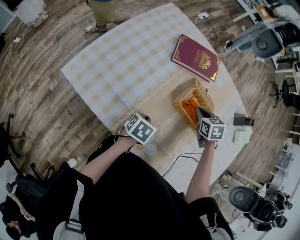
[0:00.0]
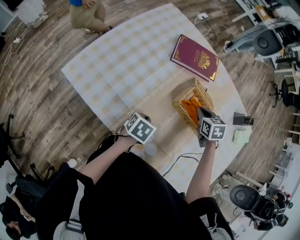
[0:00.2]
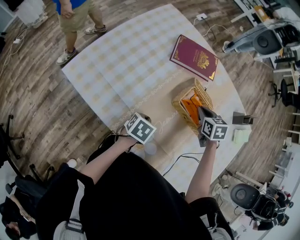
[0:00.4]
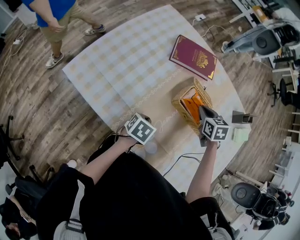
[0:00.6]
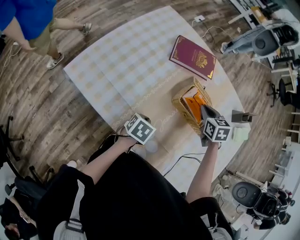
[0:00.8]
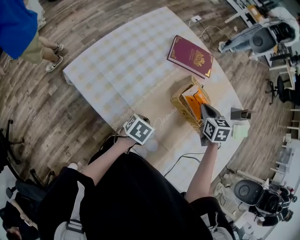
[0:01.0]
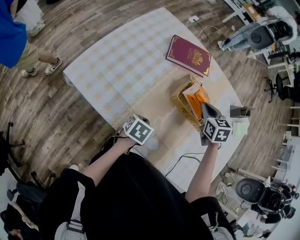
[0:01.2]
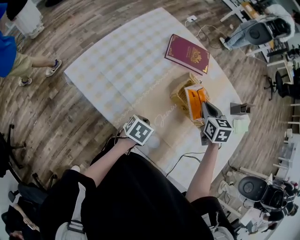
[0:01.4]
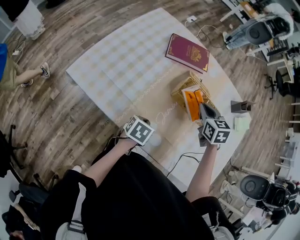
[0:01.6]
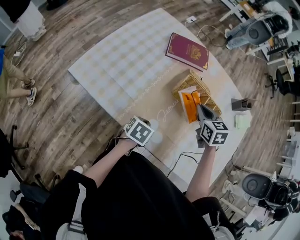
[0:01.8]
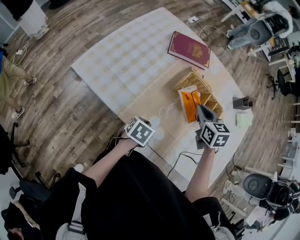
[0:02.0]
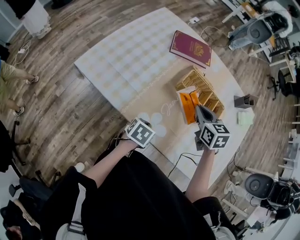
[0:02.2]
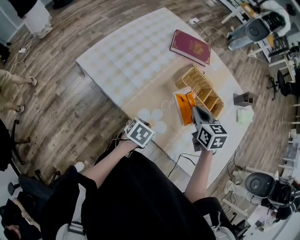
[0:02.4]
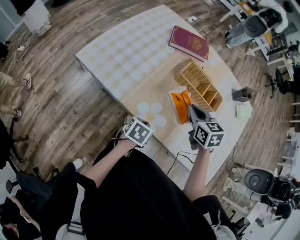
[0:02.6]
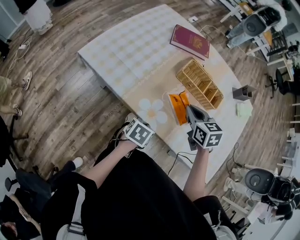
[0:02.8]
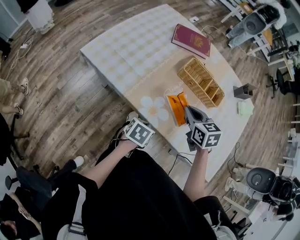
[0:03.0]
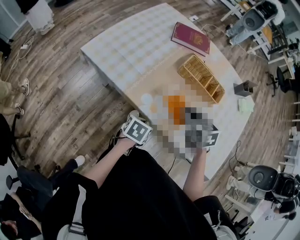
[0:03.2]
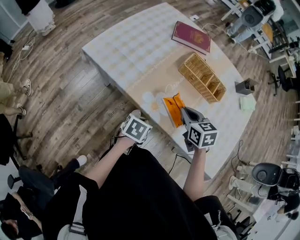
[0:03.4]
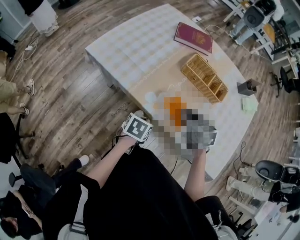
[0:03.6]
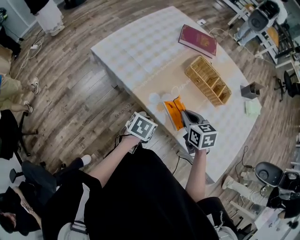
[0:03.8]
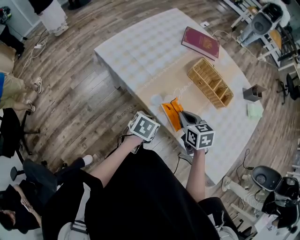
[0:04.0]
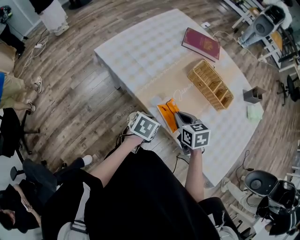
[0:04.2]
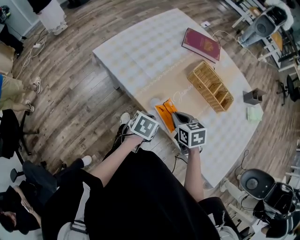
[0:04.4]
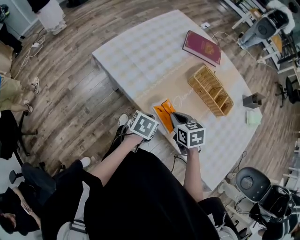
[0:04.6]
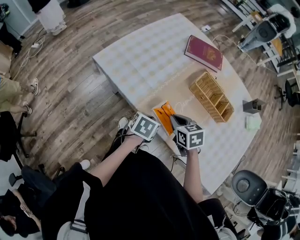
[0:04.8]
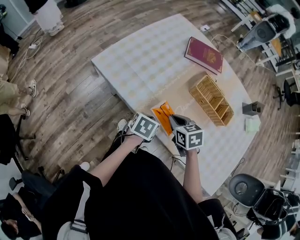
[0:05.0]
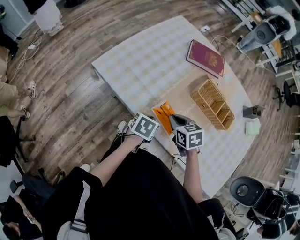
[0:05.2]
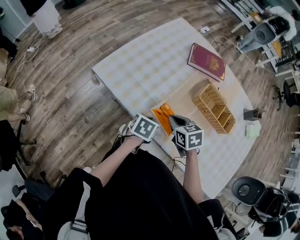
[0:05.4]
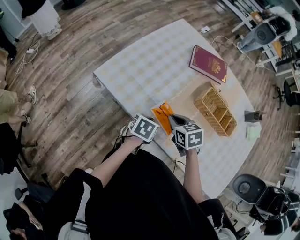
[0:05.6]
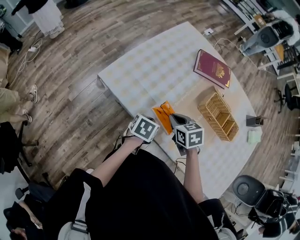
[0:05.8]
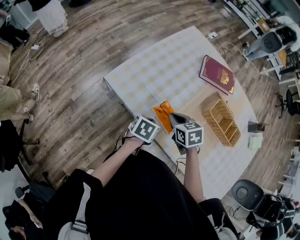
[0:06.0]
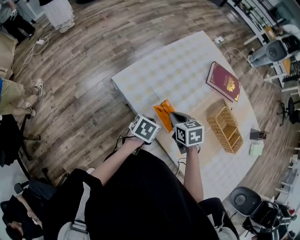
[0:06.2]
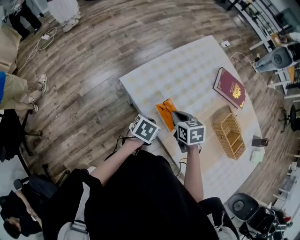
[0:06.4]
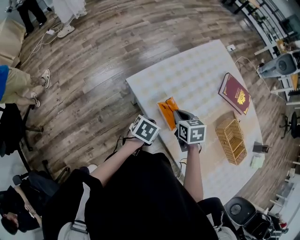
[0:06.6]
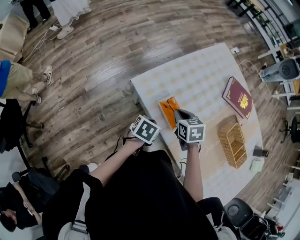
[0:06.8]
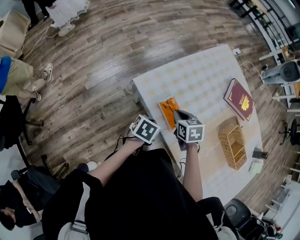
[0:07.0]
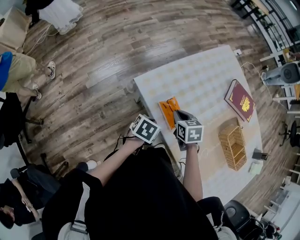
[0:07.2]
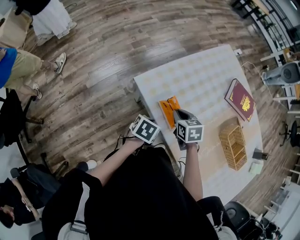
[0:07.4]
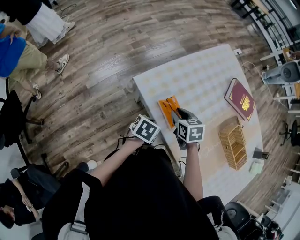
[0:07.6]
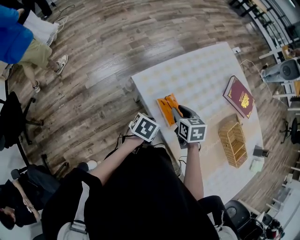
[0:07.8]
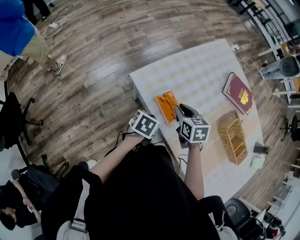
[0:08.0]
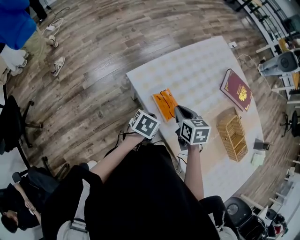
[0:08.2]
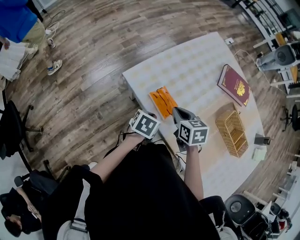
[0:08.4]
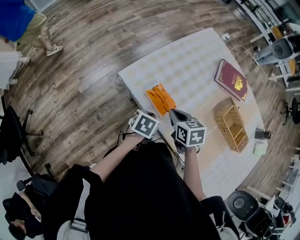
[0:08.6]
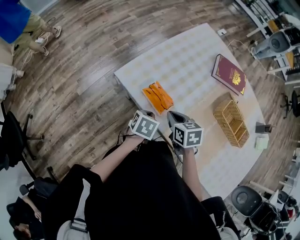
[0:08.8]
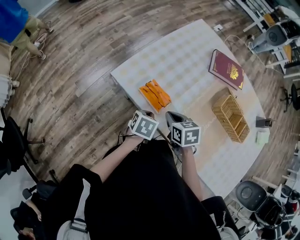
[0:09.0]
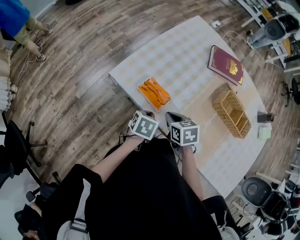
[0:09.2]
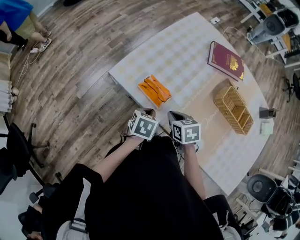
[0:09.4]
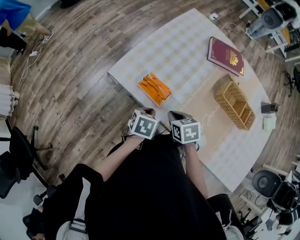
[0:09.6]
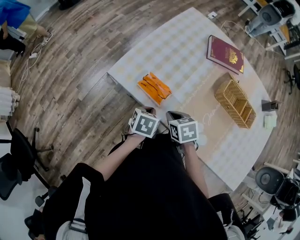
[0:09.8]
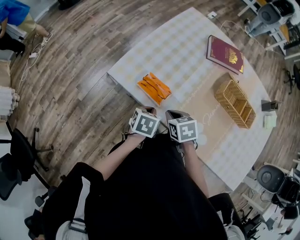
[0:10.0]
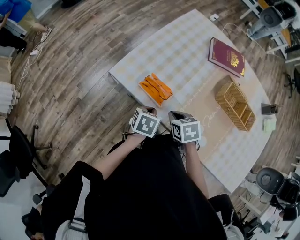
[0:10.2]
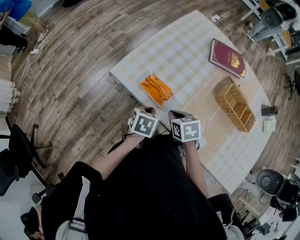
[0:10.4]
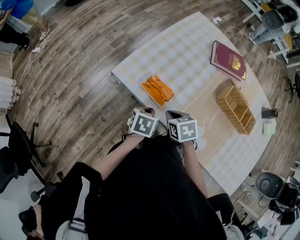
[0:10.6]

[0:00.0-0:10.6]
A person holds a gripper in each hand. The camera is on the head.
0:00.0 to 0:01.6: The right gripper heads upward and backward, covering roughly 10 cm; the left gripper travels backward by approximately 5 cm.
0:01.6 to 0:03.0: The two grippers go about 15 cm backward.
0:03.0 to 0:04.6: The right gripper goes roughly 10 cm to the left and downward. Meanwhile the left gripper travels forward by approximately 5 cm.
0:04.6 to 0:06.0: Both grippers move to the left and forward, roughly 20 cm.
0:06.0 to 0:07.6: The right gripper is displaced to the left and forward by some 15 cm, and opens its fingers; the left gripper heads to the left, covering approximately 15 cm.
0:07.6 to 0:09.0: The left gripper goes roughly 5 cm to the right; the right gripper shifts some 10 cm backward and to the right, and closes up.
0:09.0 to 0:10.6: The grippers stay close to where they were, moving slightly.

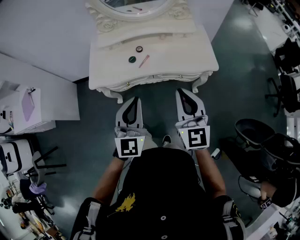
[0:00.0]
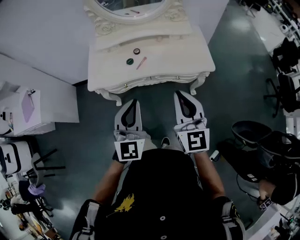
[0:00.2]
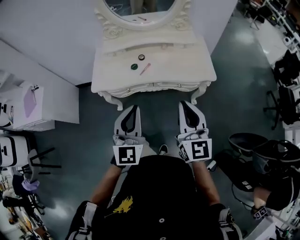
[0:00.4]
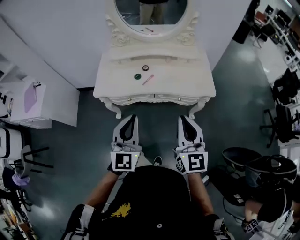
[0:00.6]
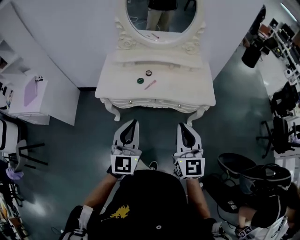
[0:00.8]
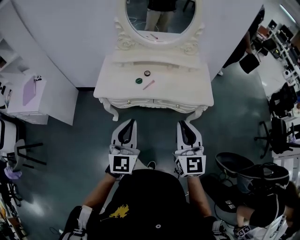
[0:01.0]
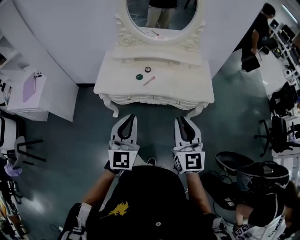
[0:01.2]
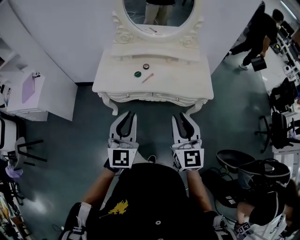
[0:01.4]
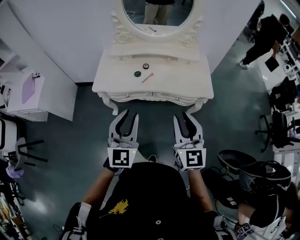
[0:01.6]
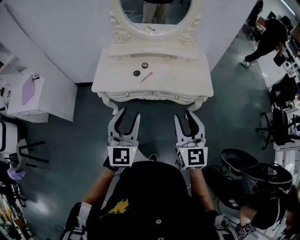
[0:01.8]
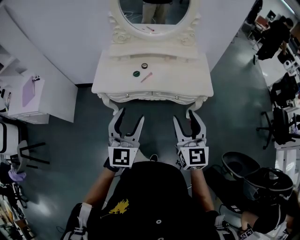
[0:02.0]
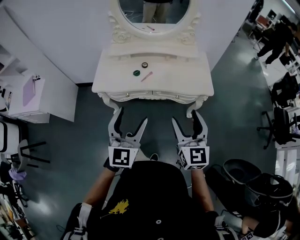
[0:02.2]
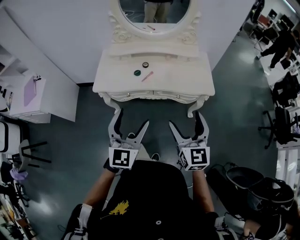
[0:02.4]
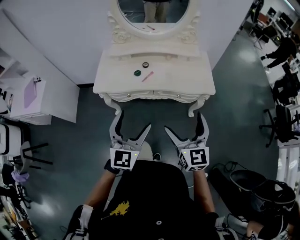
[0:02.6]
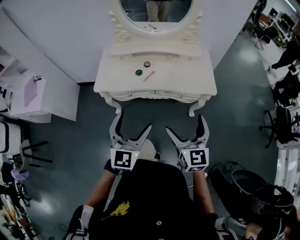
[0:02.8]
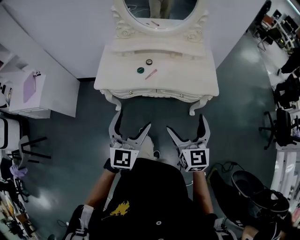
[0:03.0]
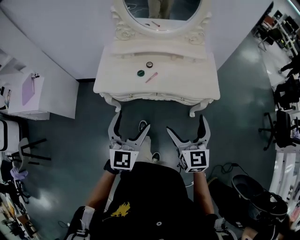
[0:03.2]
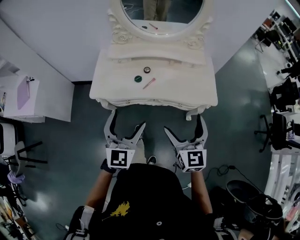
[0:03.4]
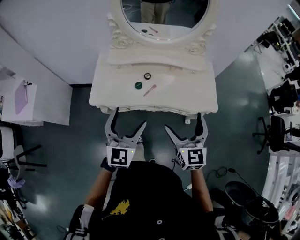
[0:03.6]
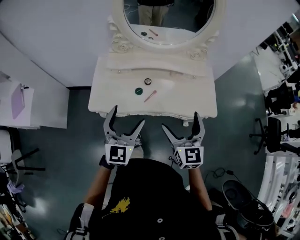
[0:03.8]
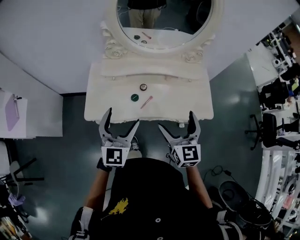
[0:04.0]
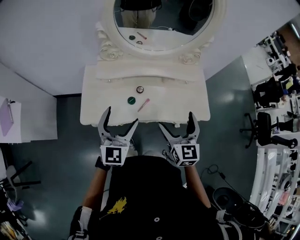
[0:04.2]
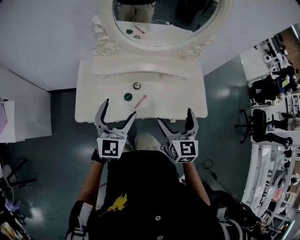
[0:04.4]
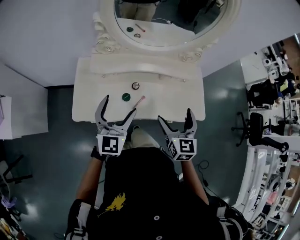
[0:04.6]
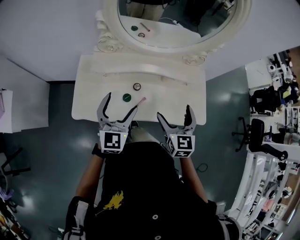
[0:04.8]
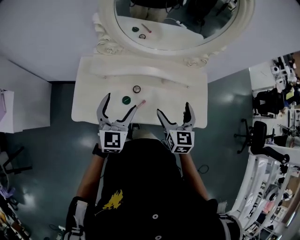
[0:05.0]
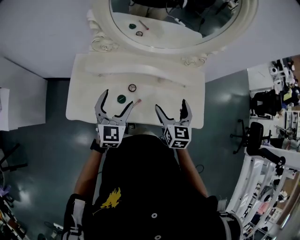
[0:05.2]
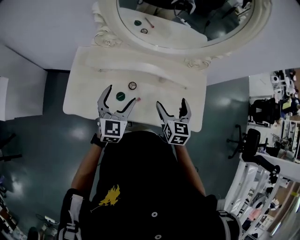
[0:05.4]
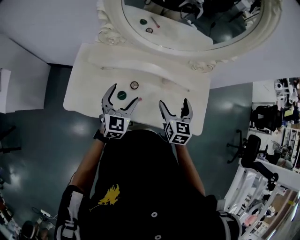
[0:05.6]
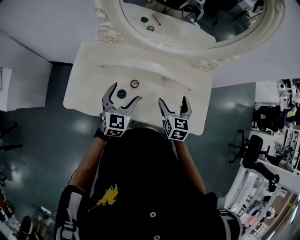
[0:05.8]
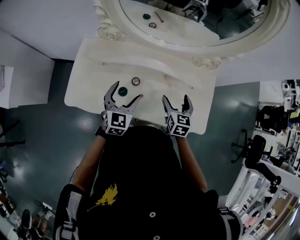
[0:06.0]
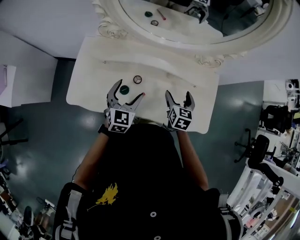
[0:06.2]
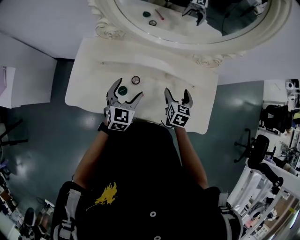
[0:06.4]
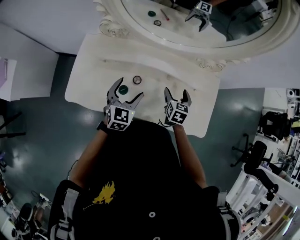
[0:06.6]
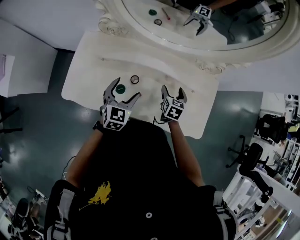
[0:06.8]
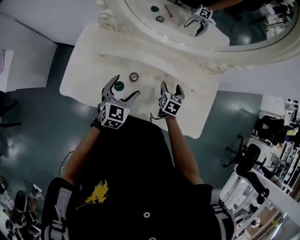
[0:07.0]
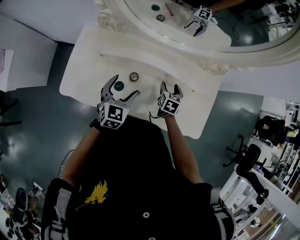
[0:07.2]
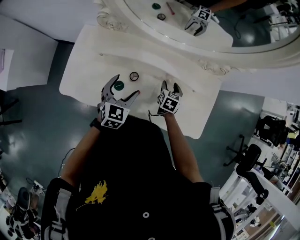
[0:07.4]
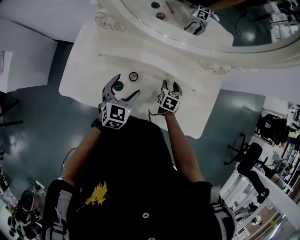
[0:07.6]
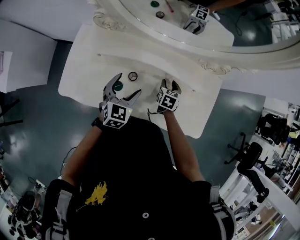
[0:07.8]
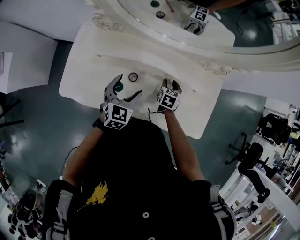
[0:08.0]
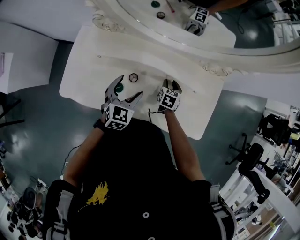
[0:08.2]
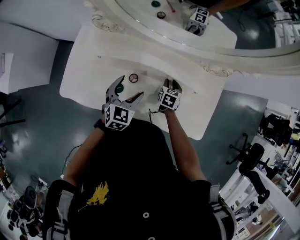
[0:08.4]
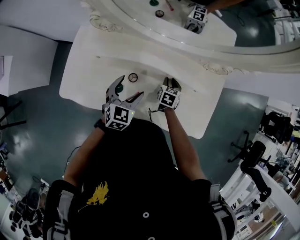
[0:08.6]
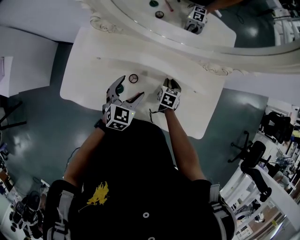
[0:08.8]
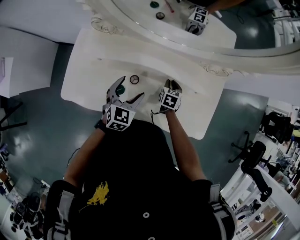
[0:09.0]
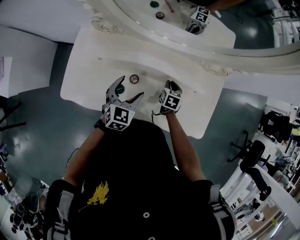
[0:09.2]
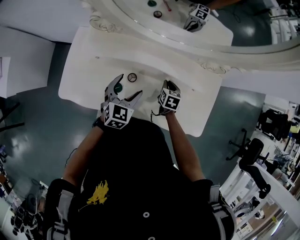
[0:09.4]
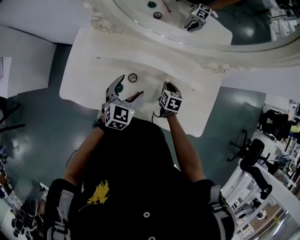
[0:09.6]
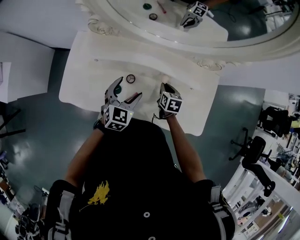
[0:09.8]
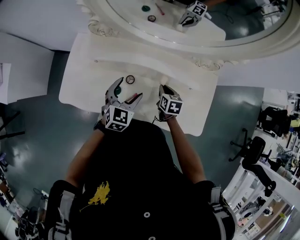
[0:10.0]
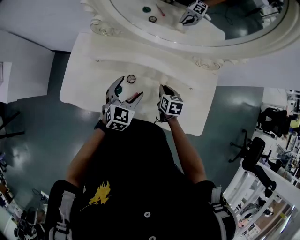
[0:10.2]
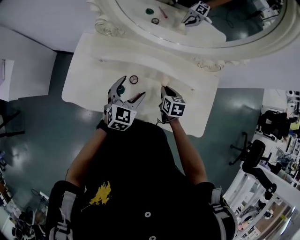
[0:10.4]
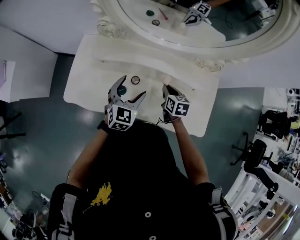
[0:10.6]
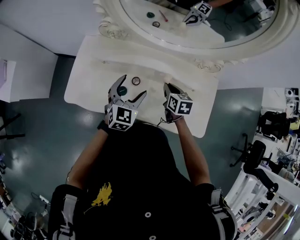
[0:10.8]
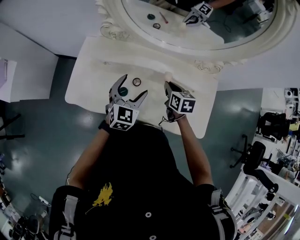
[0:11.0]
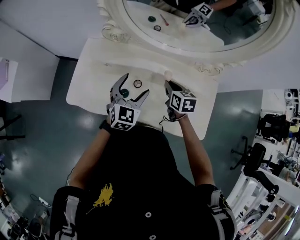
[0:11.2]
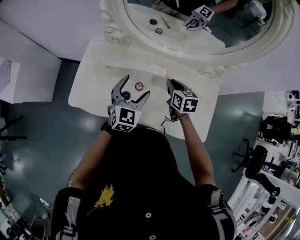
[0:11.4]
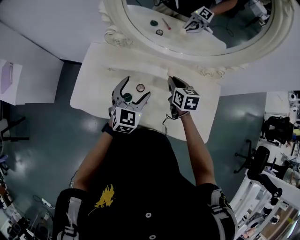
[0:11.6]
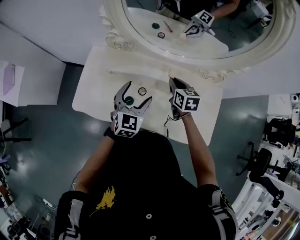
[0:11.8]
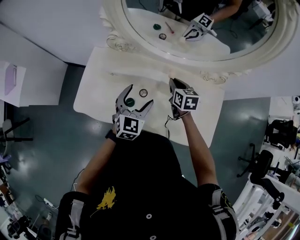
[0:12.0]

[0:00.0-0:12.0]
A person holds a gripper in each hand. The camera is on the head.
0:00.0 to 0:01.6: The two grippers go about 5 cm backward.
0:01.6 to 0:03.0: The right gripper opens its fingers. Meanwhile the left gripper opens.
0:03.0 to 0:04.4: Both grippers move forward, some 30 cm.
0:04.4 to 0:06.0: The left gripper shifts approximately 25 cm downward, forward and to the right, and rotates roughly 20 degrees. Meanwhile the right gripper travels forward, downward and to the right by about 30 cm.
0:06.0 to 0:07.6: The right gripper goes some 20 cm downward and forward, and closes, while the left gripper changes place by roughly 5 cm.
0:07.6 to 0:09.0: The grippers make only small movements.
0:09.0 to 0:10.4: The right gripper is displaced upward and backward by approximately 10 cm.
0:10.4 to 0:12.0: The right gripper shifts about 15 cm upward and forward.

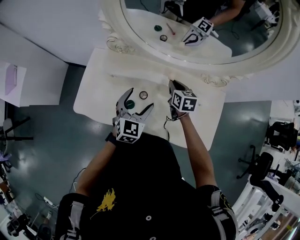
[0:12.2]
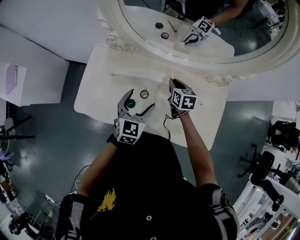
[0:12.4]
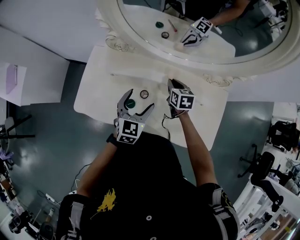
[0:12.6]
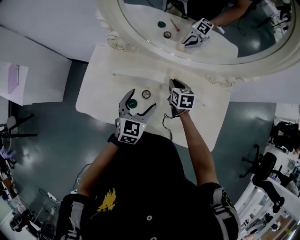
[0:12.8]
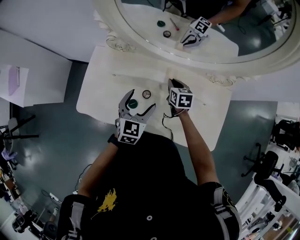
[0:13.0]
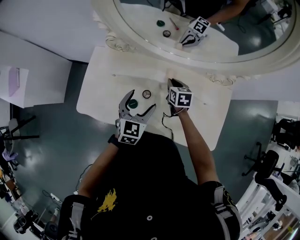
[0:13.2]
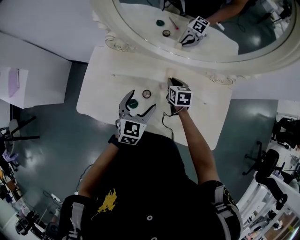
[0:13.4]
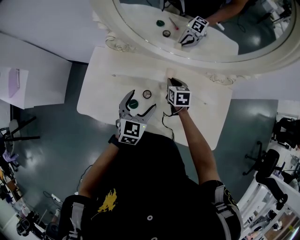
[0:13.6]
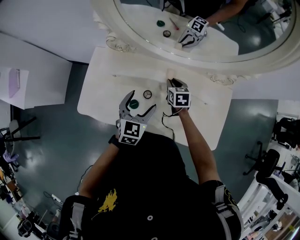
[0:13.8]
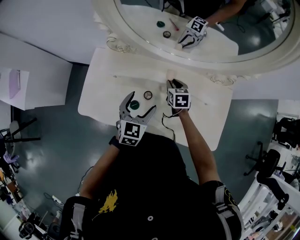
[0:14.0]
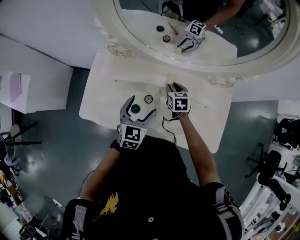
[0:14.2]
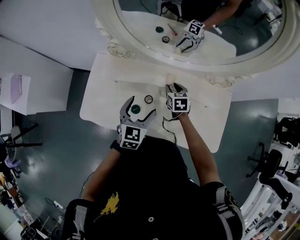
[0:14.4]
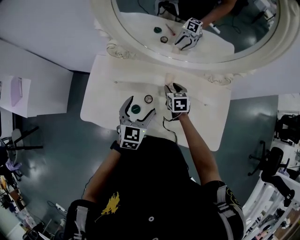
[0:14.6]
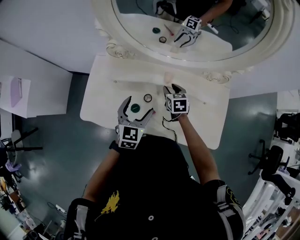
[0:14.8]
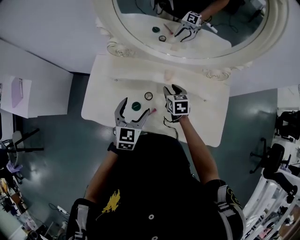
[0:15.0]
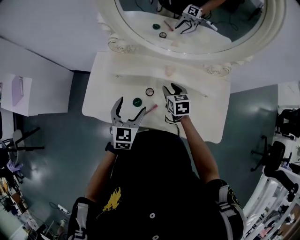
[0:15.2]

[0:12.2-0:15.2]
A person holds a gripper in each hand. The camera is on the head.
0:12.2 to 0:13.8: The right gripper shifts roughly 5 cm downward.
0:13.8 to 0:15.2: The right gripper travels backward and upward by approximately 10 cm. Meanwhile the left gripper goes about 10 cm to the left and backward.
